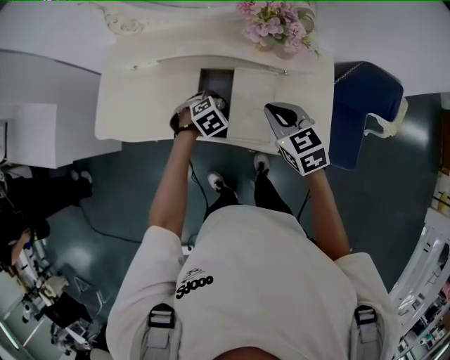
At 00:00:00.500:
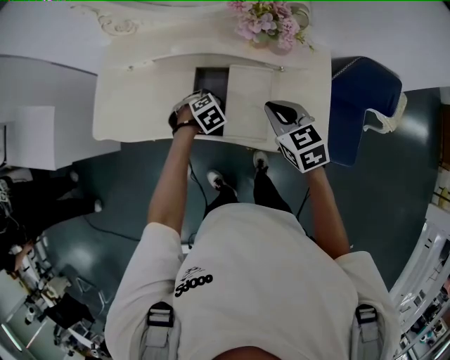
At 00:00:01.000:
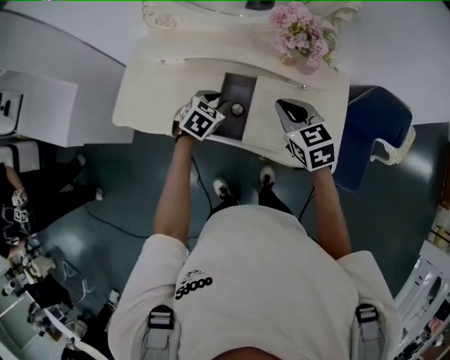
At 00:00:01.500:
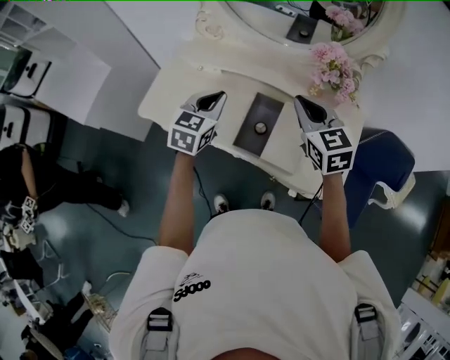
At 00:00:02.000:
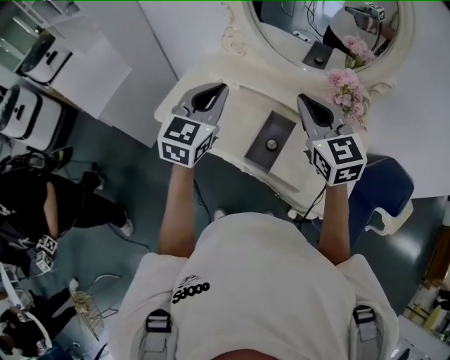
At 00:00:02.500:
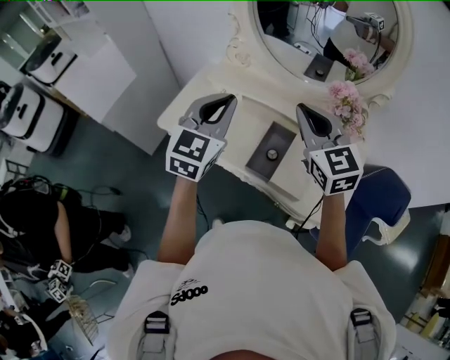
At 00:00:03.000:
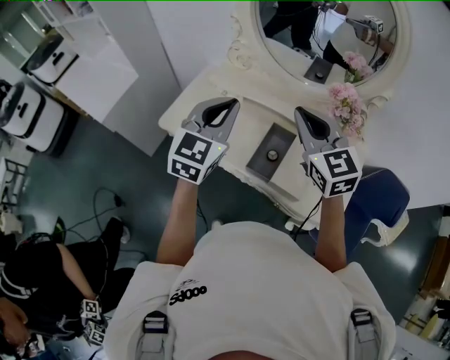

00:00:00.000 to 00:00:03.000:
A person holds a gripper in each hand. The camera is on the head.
00:00:00.000 to 00:00:01.500: The left gripper shifts approximately 25 cm upward and to the left, tips its fingers upward by approximately 40 degrees, and closes its fingers; the right gripper heads upward, to the left and forward, covering roughly 15 cm.
00:00:01.500 to 00:00:03.000: The right gripper heads upward and to the left, covering about 15 cm; the left gripper moves upward, approximately 15 cm, and changes its angle by roughly 20 degrees.

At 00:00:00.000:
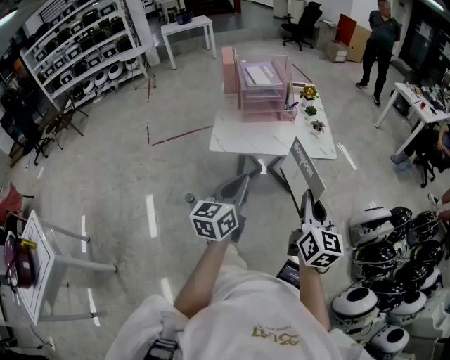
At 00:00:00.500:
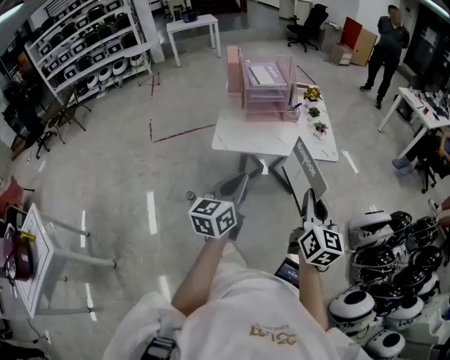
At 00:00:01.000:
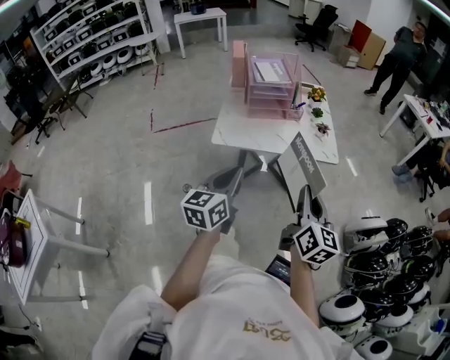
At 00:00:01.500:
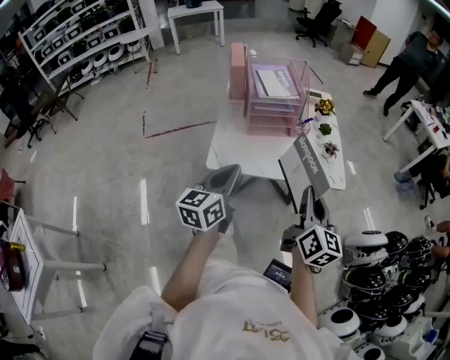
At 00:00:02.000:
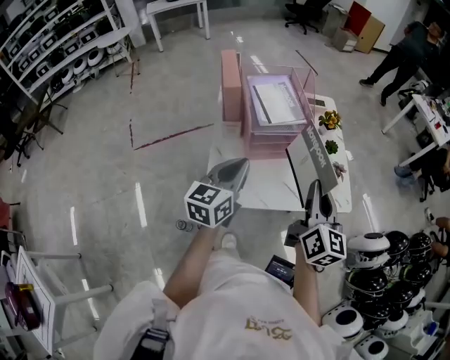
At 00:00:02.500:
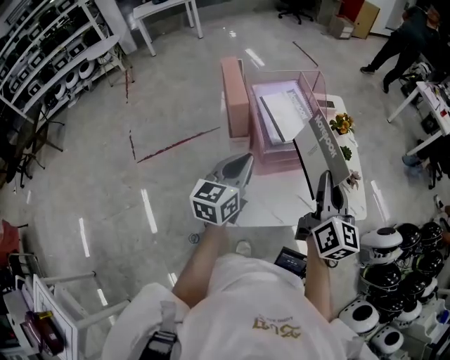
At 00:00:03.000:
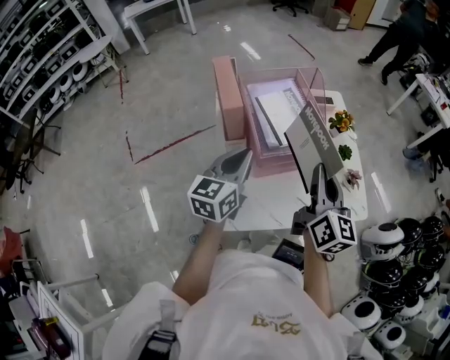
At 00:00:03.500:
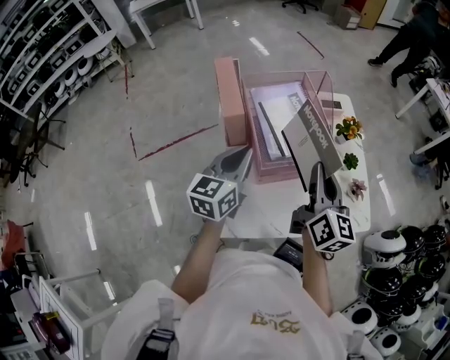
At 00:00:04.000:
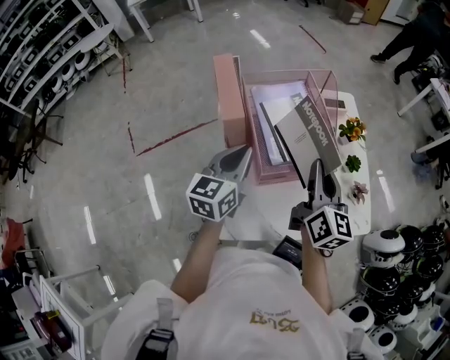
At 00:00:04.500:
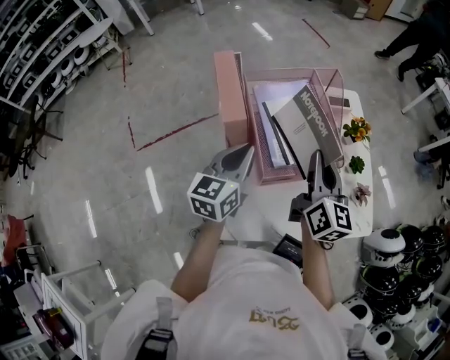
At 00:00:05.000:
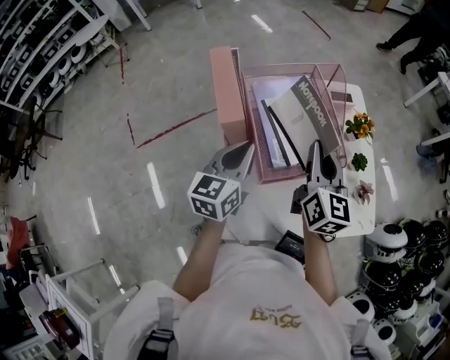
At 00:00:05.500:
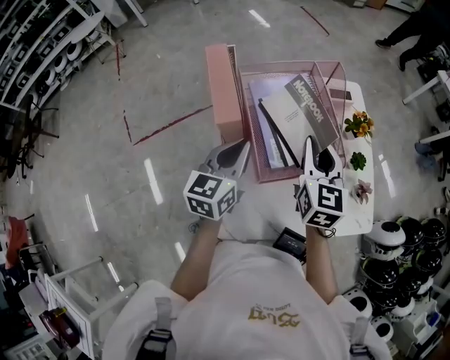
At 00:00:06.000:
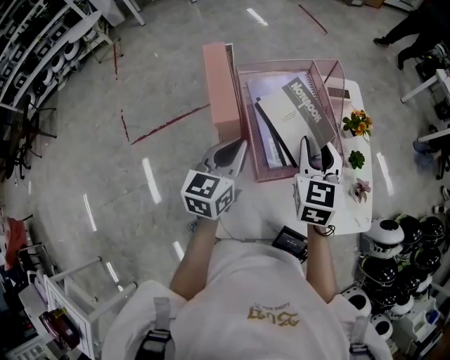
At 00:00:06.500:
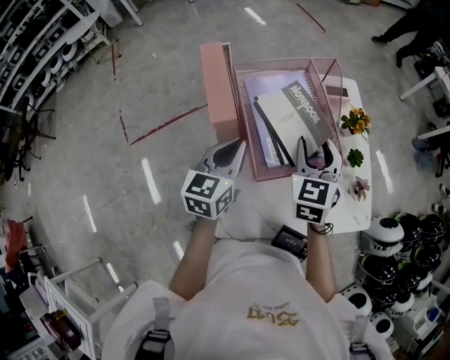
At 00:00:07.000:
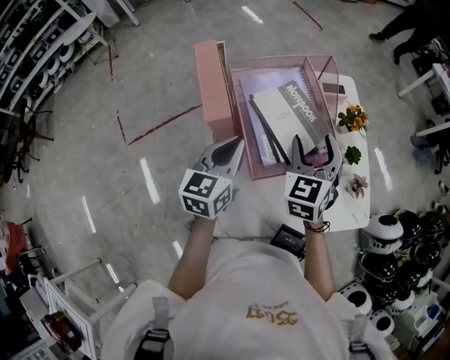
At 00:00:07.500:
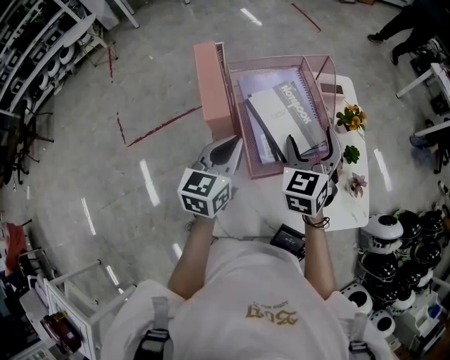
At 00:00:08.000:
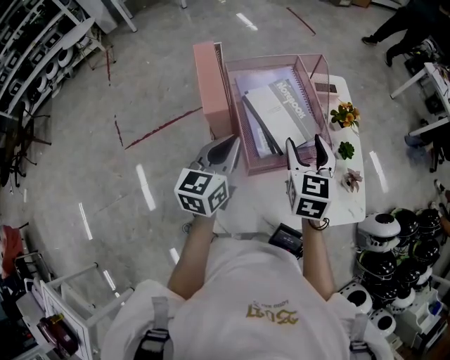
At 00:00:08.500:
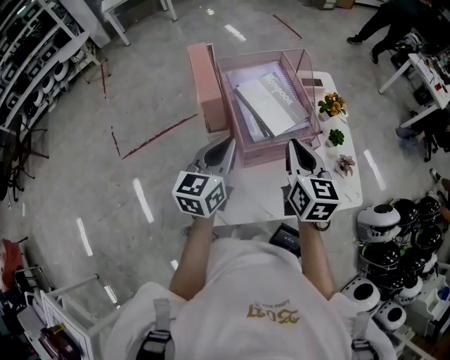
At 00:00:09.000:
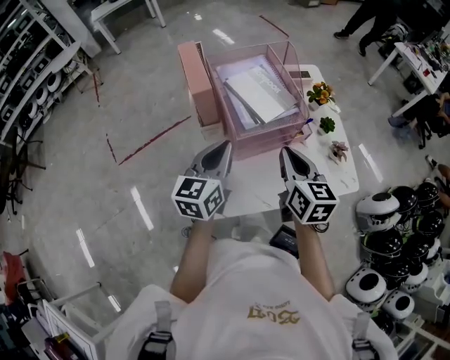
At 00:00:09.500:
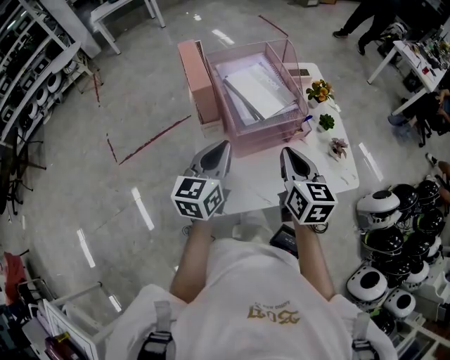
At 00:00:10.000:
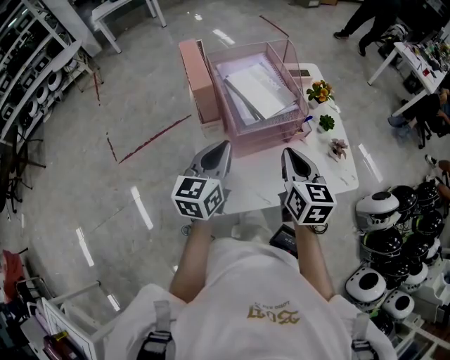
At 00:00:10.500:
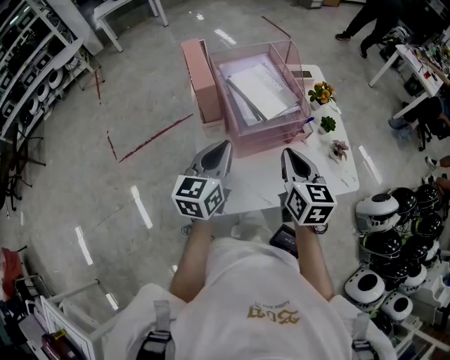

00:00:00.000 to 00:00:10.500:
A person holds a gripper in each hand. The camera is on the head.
00:00:00.000 to 00:00:02.000: The grippers both shift forward by roughly 35 cm.
00:00:02.000 to 00:00:04.000: The grippers both shift forward and to the left by approximately 20 cm.
00:00:04.000 to 00:00:06.500: The right gripper goes about 10 cm forward, rotates around the line of its fingers by roughly 40 degrees, counterclockwise from behind, and opens up.
00:00:06.500 to 00:00:08.500: The two grippers go roughly 10 cm backward. The right gripper swivels some 30 degrees, and closes its fingers.
00:00:08.500 to 00:00:10.500: The grippers both shift backward by some 5 cm.

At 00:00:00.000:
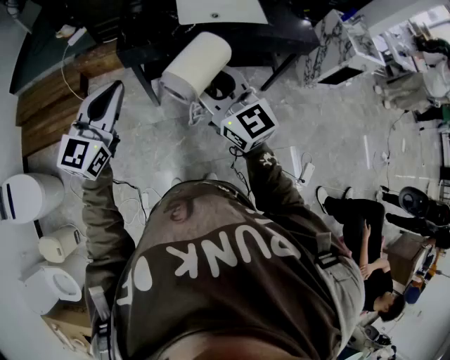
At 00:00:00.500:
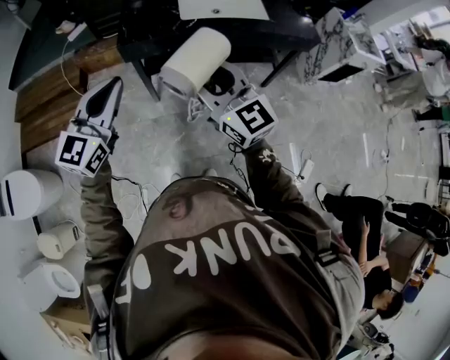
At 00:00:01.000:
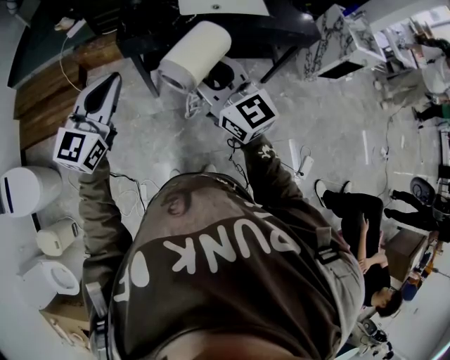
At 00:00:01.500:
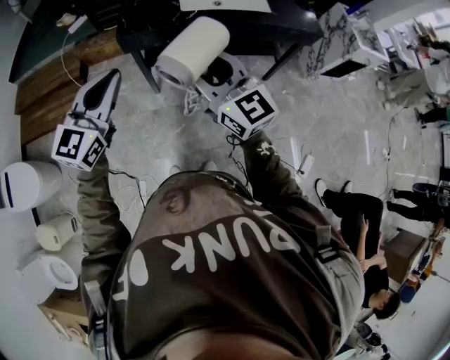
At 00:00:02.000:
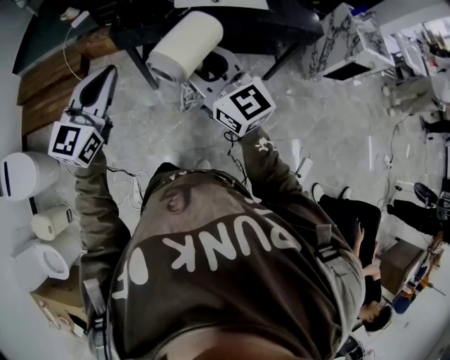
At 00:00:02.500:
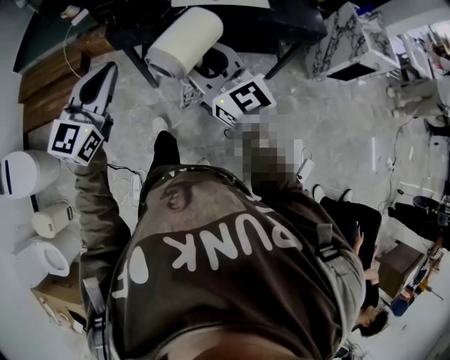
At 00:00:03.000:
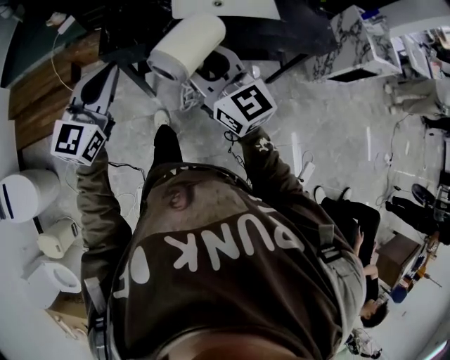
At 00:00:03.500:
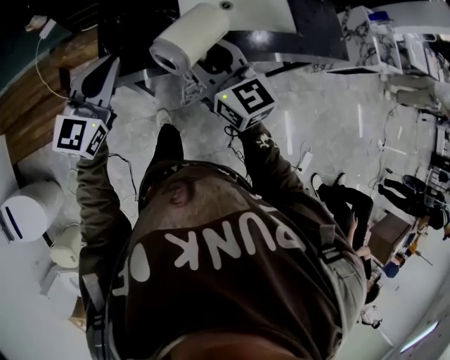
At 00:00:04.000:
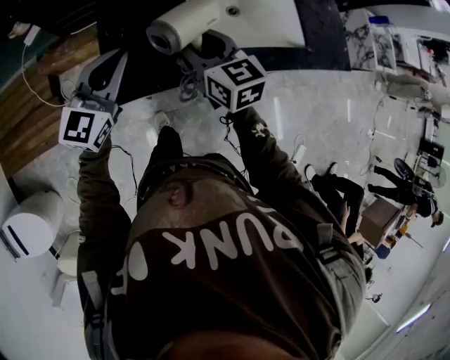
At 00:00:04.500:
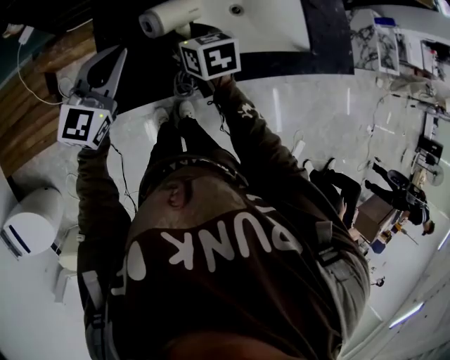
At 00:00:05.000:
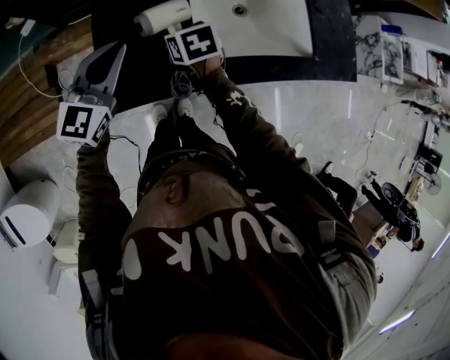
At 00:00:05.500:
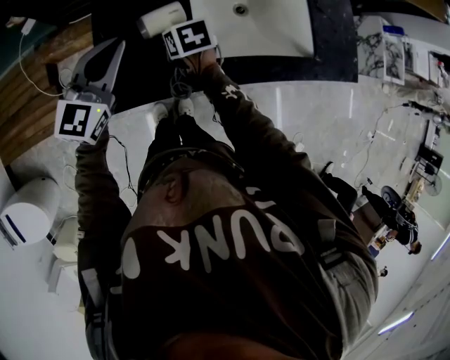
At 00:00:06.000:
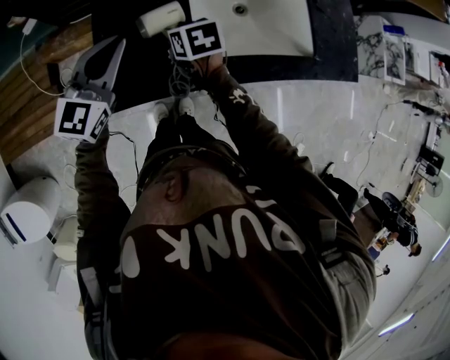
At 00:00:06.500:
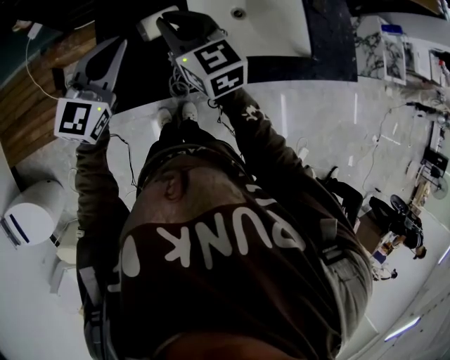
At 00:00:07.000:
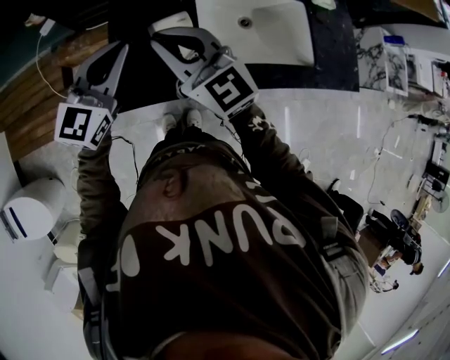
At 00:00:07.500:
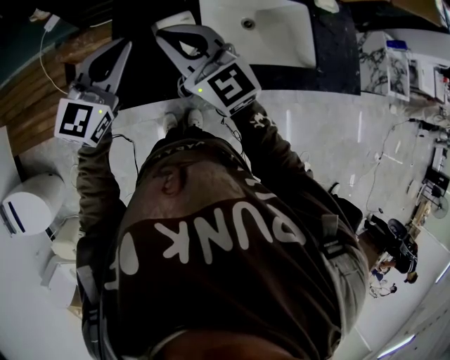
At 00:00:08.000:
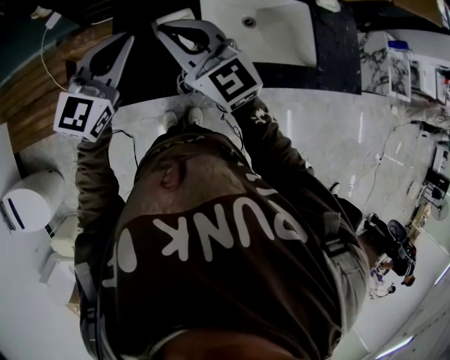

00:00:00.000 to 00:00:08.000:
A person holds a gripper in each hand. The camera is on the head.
00:00:00.000 to 00:00:02.000: The left gripper moves to the right, approximately 5 cm.
00:00:02.000 to 00:00:04.000: Both grippers are carried forward, about 50 cm. The right gripper turns by some 30 degrees.
00:00:04.000 to 00:00:06.000: The left gripper heads forward, covering approximately 5 cm, while the right gripper moves downward and forward, some 15 cm, and points its fingers some 30 degrees further downward.
00:00:06.000 to 00:00:08.000: The right gripper goes some 20 cm upward, points its fingers some 50 degrees further upward, and closes up, while the left gripper moves upward, approximately 5 cm.

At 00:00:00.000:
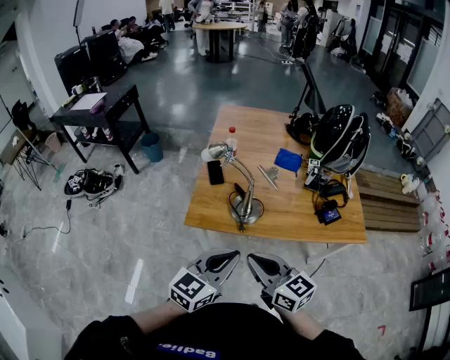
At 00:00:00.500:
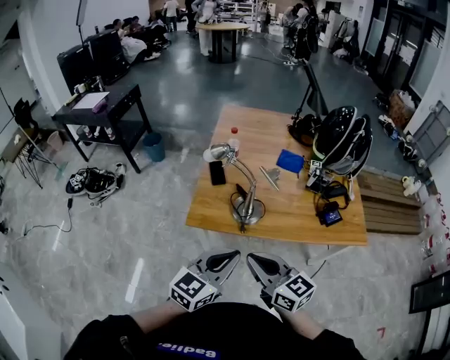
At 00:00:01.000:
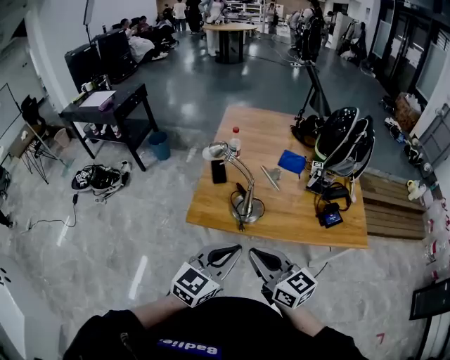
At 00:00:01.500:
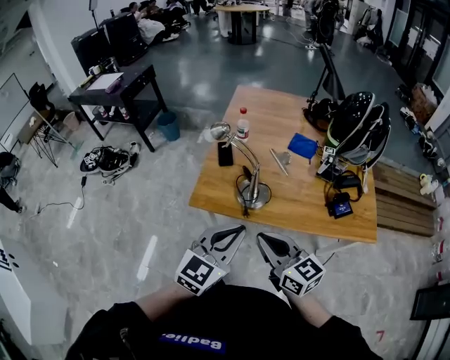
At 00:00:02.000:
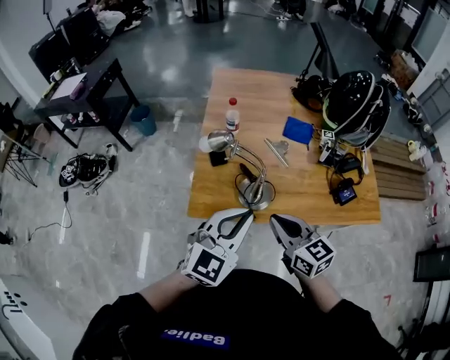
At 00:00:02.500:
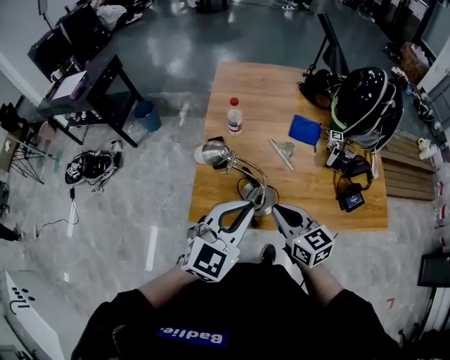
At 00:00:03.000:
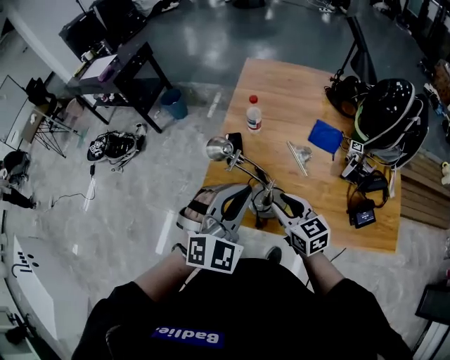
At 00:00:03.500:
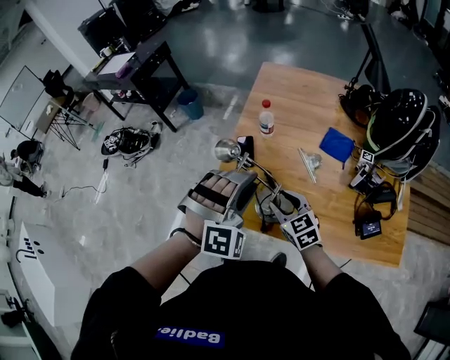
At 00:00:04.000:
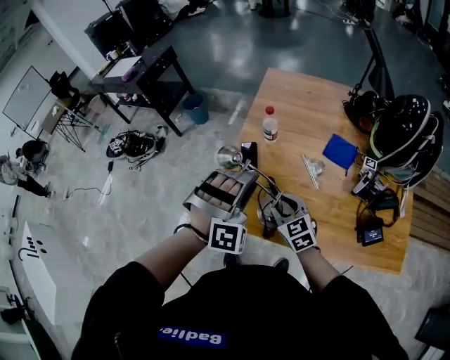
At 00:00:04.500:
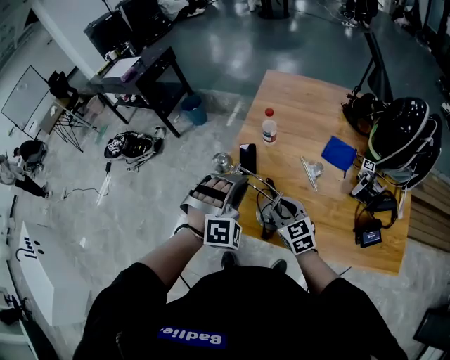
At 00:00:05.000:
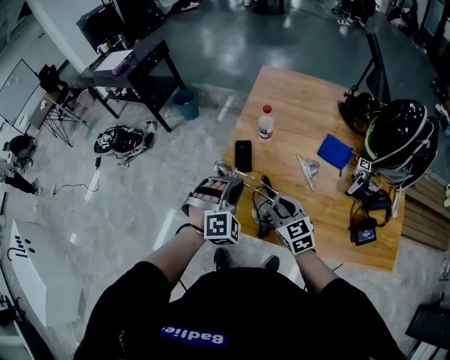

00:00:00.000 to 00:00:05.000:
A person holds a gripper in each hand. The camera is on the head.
00:00:00.000 to 00:00:02.500: Both grippers travel together forward, roughly 20 cm. The left gripper changes its angle by about 20 degrees.
00:00:02.500 to 00:00:05.000: The grippers both shift forward and downward by about 15 cm. The right gripper turns by some 20 degrees, and opens; the left gripper rotates approximately 60 degrees, and opens and closes again.
